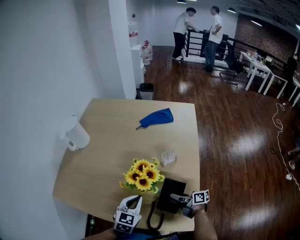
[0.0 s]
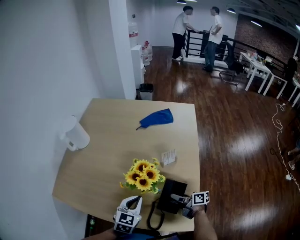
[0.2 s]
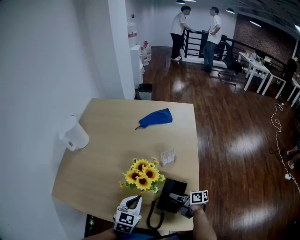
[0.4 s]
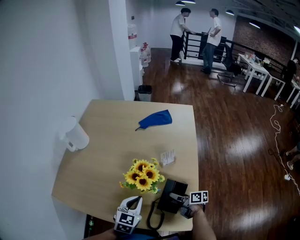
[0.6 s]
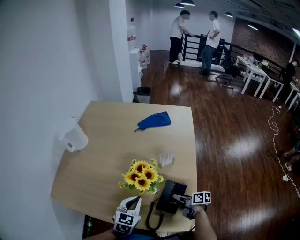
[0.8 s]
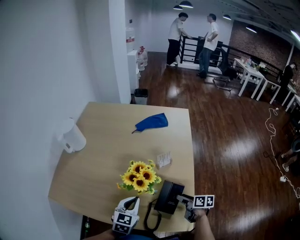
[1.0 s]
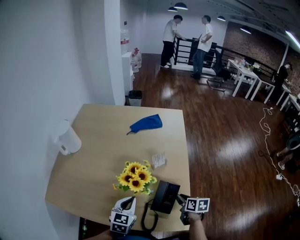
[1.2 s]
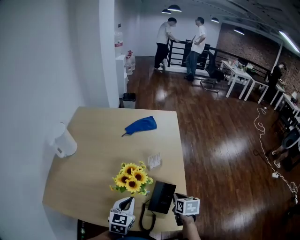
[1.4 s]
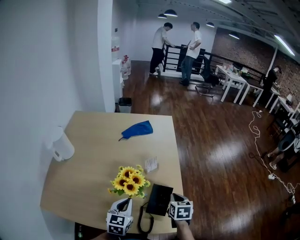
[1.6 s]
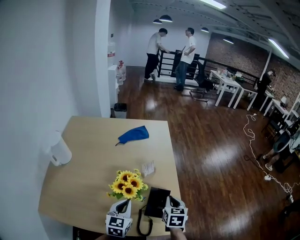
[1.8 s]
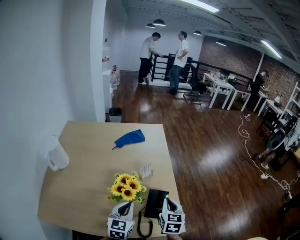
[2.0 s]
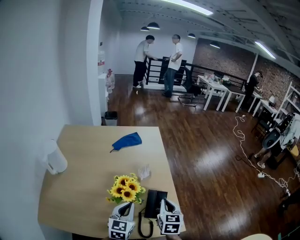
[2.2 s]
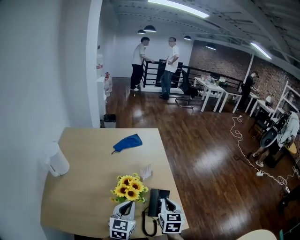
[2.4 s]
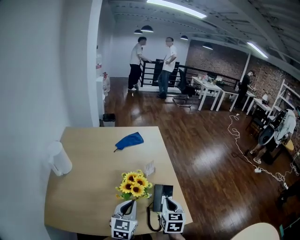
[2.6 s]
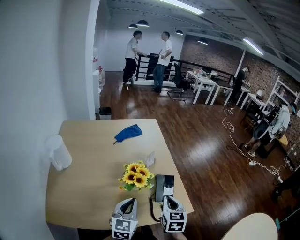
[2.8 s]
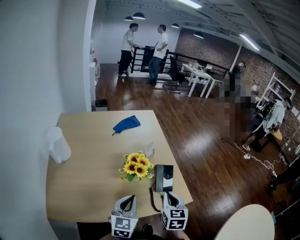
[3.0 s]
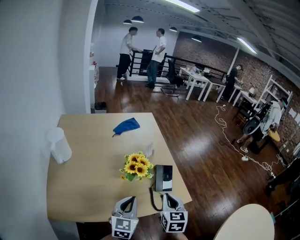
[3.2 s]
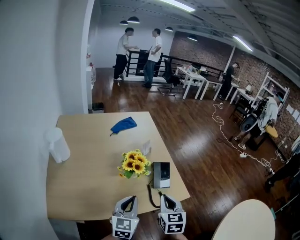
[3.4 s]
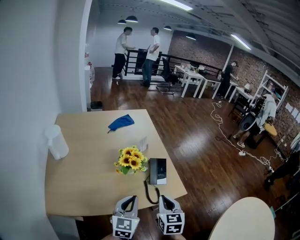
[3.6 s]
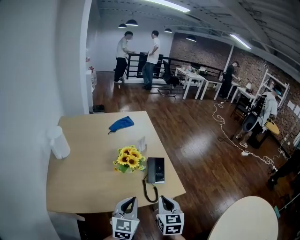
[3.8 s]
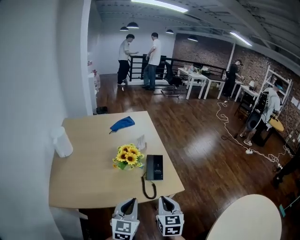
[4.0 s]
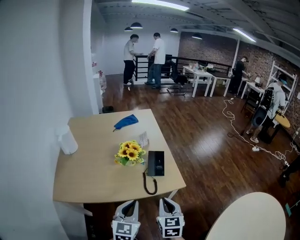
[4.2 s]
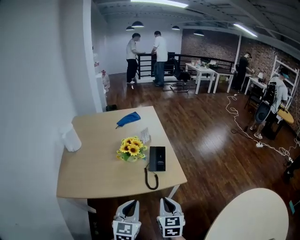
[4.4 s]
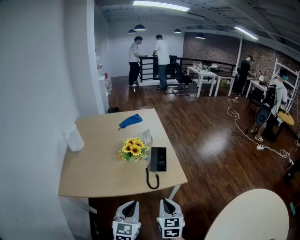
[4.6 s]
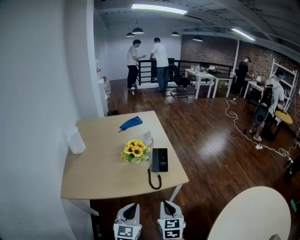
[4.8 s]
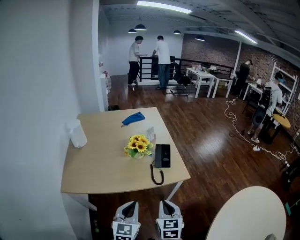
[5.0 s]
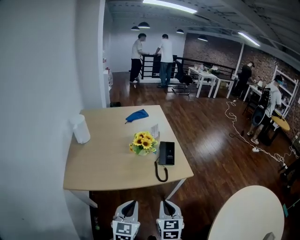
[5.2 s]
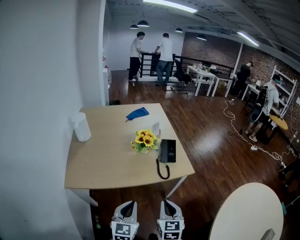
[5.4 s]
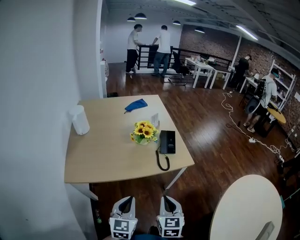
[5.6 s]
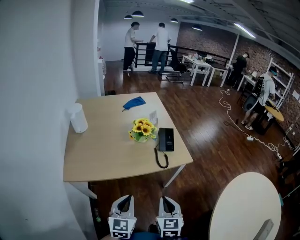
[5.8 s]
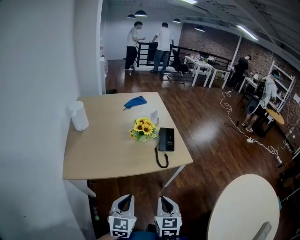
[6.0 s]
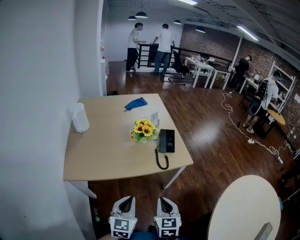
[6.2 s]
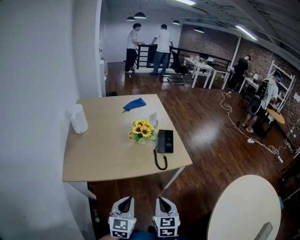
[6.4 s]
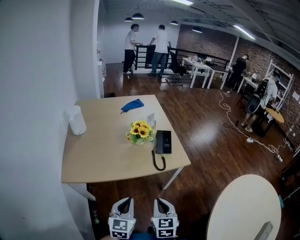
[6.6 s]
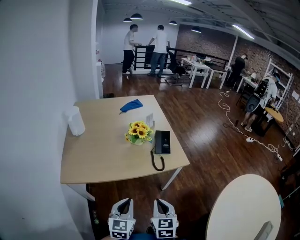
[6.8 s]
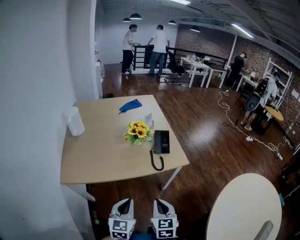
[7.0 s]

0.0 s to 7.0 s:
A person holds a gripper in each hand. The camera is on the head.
0.0 to 1.4 s: The right gripper shifts some 10 cm upward and to the right, points its fingers approximately 40 degrees further downward, and closes its fingers.
1.4 to 2.8 s: The right gripper moves upward, backward and to the left, some 20 cm, and changes its angle by approximately 30 degrees, while the left gripper shifts about 10 cm upward and backward.
2.8 to 4.2 s: The right gripper travels backward by some 20 cm. The left gripper moves backward and to the right, about 20 cm.
4.2 to 5.6 s: Both grippers move backward and to the left, approximately 15 cm.
5.6 to 7.0 s: The grippers move only a little.

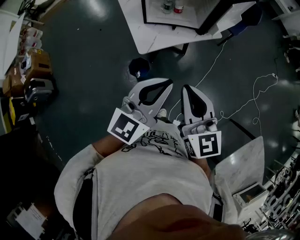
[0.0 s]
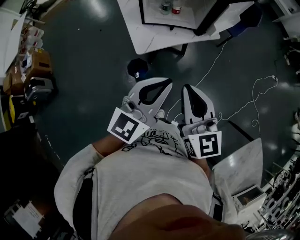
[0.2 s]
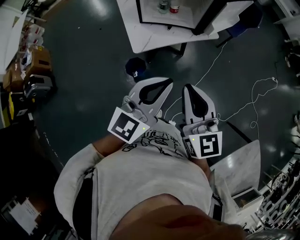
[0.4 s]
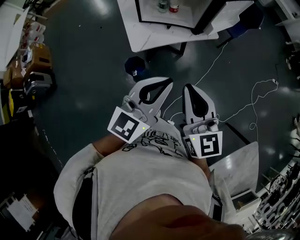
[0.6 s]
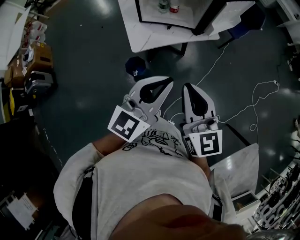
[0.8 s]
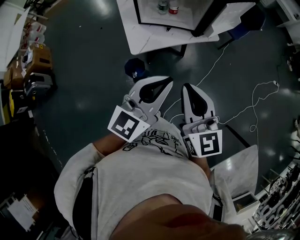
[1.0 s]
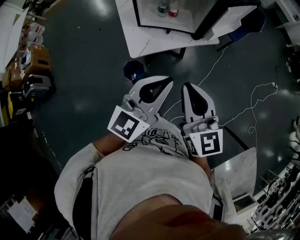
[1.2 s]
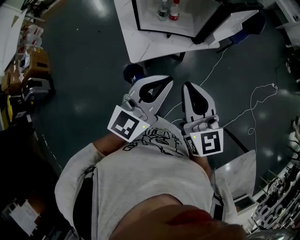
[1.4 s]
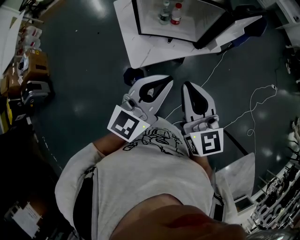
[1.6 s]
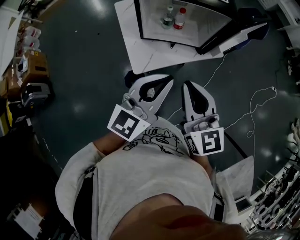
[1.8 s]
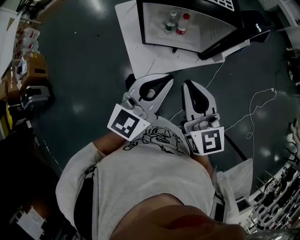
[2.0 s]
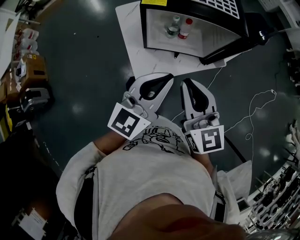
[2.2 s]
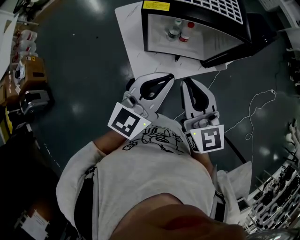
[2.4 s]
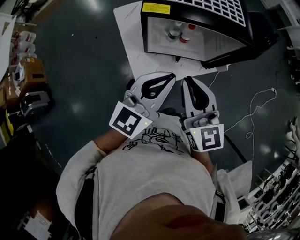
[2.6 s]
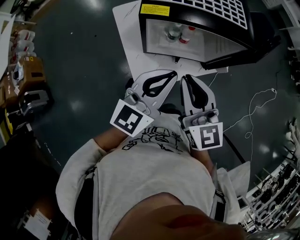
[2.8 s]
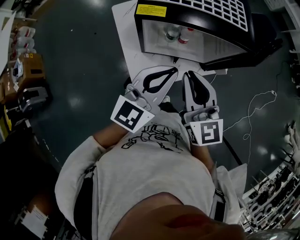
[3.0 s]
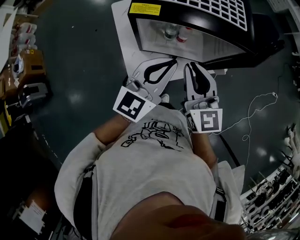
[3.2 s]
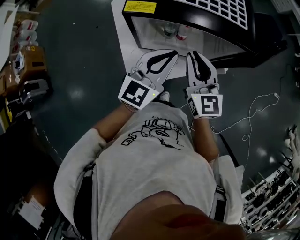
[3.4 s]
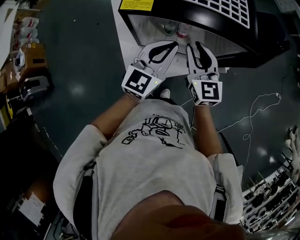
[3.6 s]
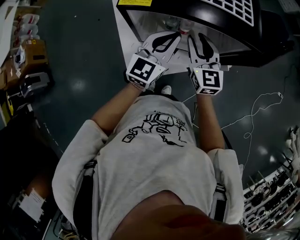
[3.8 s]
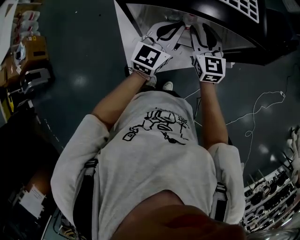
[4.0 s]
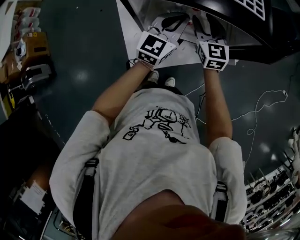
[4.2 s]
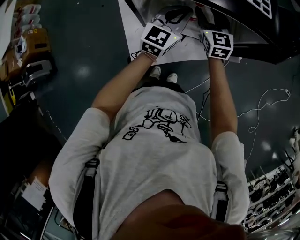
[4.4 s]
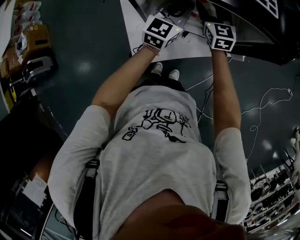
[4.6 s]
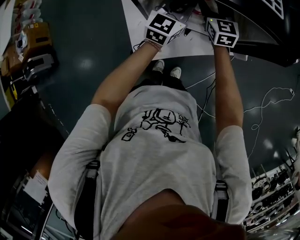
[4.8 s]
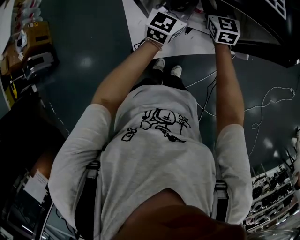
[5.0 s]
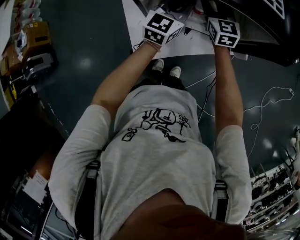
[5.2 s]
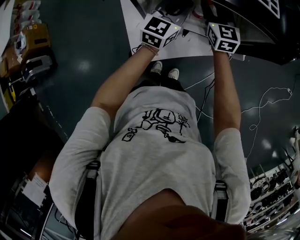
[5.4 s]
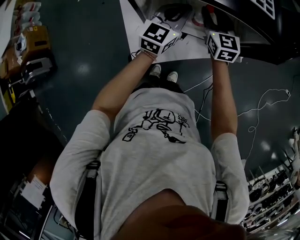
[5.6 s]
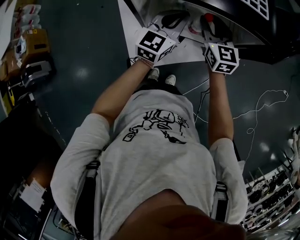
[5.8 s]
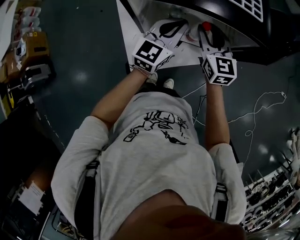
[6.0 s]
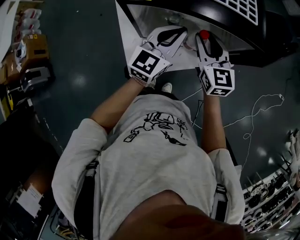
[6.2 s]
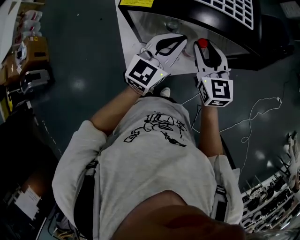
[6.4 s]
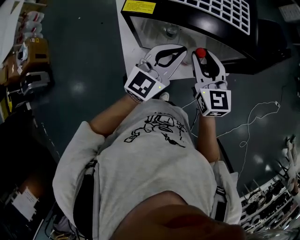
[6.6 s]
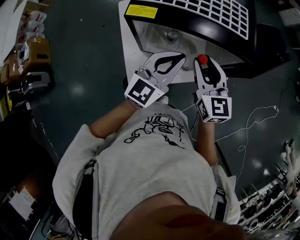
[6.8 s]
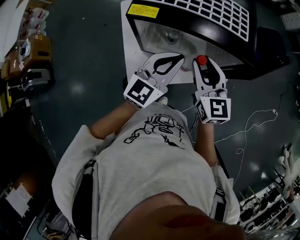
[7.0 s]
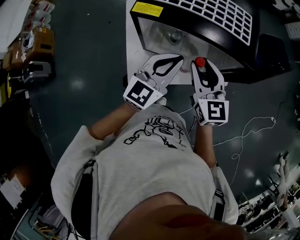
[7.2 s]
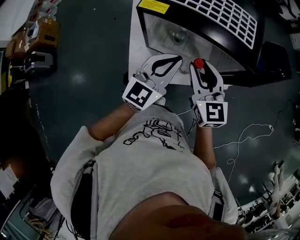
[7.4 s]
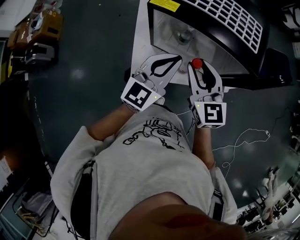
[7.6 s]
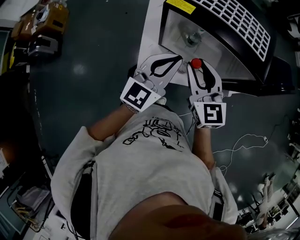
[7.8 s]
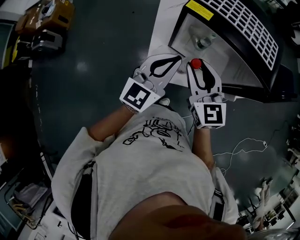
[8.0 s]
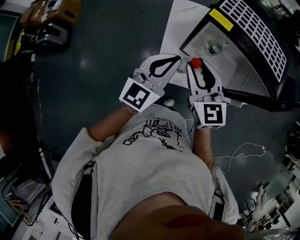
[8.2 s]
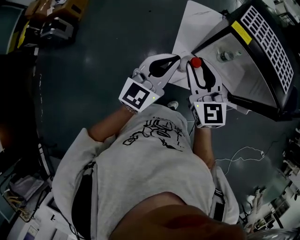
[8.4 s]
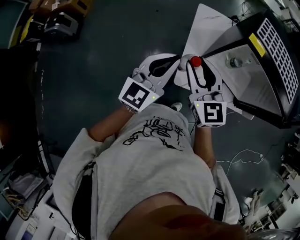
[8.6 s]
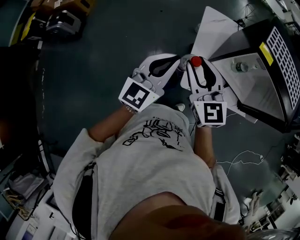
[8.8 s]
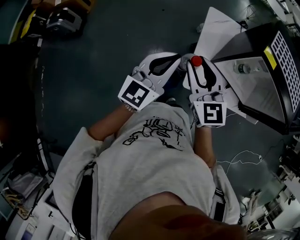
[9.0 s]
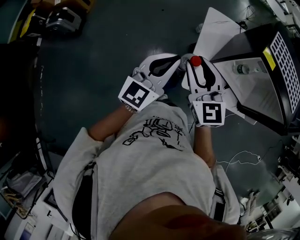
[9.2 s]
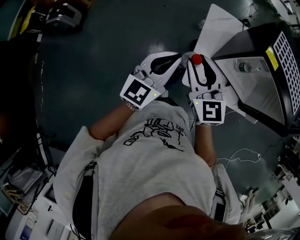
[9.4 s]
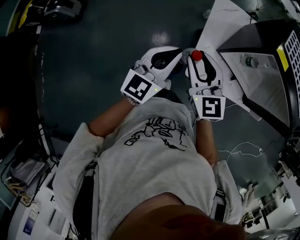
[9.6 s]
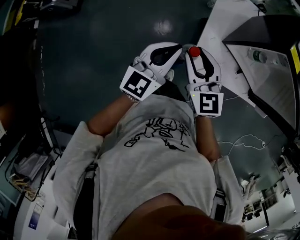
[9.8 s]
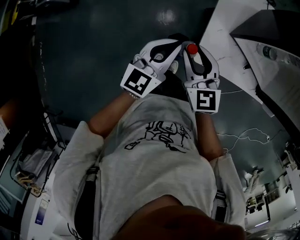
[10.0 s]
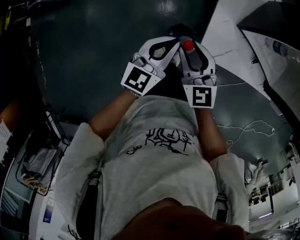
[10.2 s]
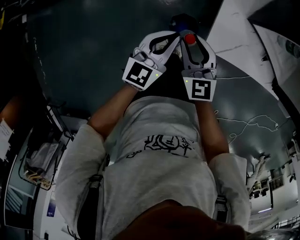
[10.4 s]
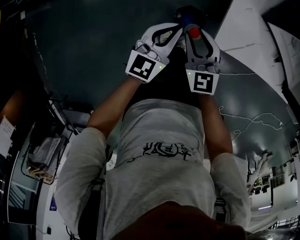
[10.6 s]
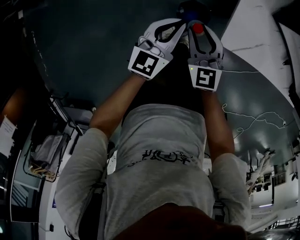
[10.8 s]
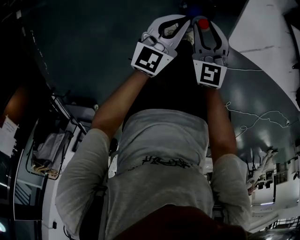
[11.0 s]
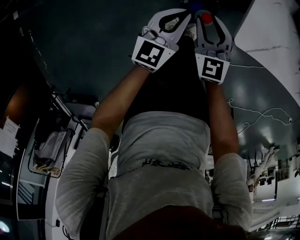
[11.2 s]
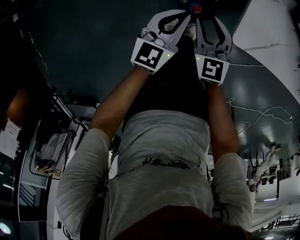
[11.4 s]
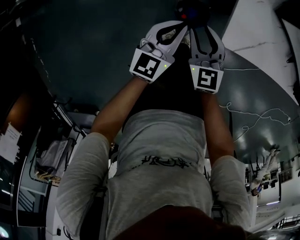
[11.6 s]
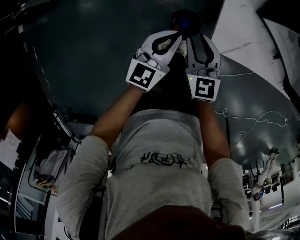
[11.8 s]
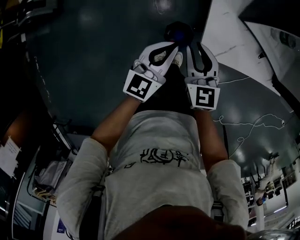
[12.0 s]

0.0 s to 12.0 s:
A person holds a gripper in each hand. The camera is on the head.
0.0 to 1.6 s: Both grippers travel together forward, roughly 15 cm.
1.6 to 3.0 s: The two grippers go roughly 20 cm forward.
3.0 to 4.4 s: The grippers both shift forward and downward by some 25 cm. The right gripper opens.
4.4 to 6.0 s: The right gripper heads backward and upward, covering roughly 10 cm. The left gripper ends up some 5 cm from where it was.
6.0 to 7.6 s: Both grippers move backward and upward, approximately 15 cm.
7.6 to 9.0 s: Both grippers move to the left, some 35 cm.
9.0 to 10.4 s: The two grippers go about 30 cm downward.
10.4 to 12.0 s: The right gripper reaches some 20 cm downward, then returns. Meanwhile the left gripper moves roughly 15 cm downward and comes back.

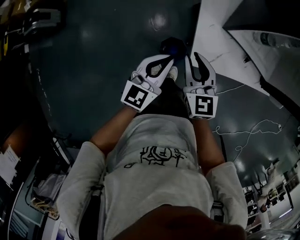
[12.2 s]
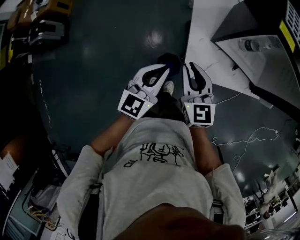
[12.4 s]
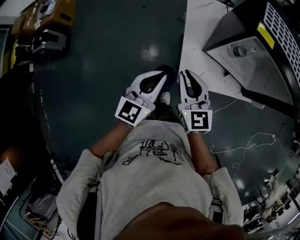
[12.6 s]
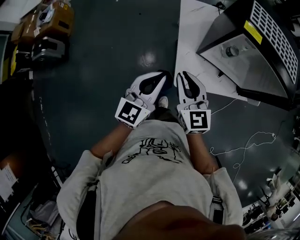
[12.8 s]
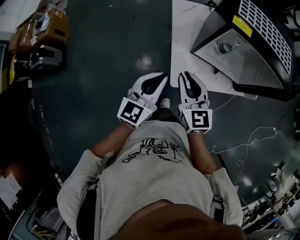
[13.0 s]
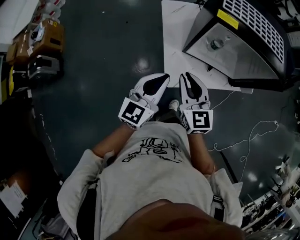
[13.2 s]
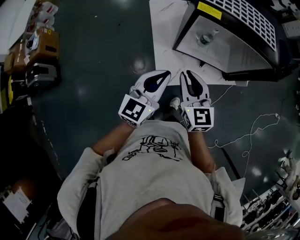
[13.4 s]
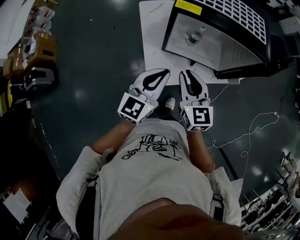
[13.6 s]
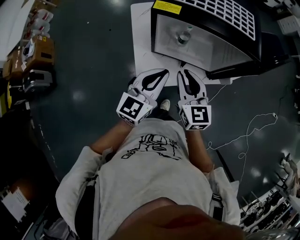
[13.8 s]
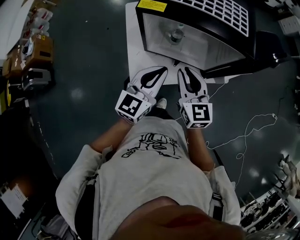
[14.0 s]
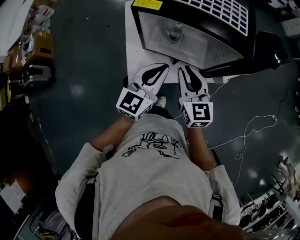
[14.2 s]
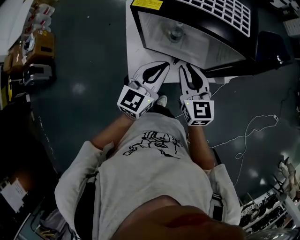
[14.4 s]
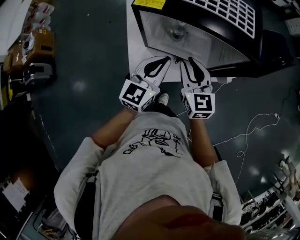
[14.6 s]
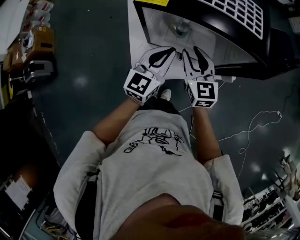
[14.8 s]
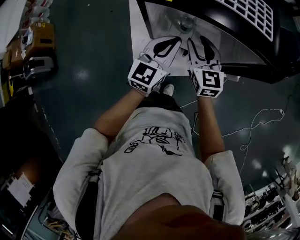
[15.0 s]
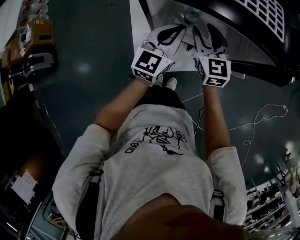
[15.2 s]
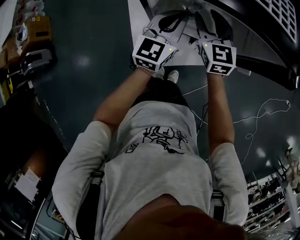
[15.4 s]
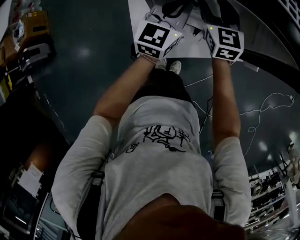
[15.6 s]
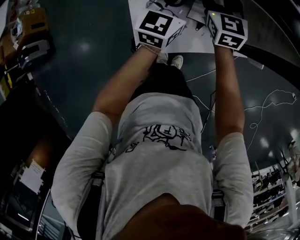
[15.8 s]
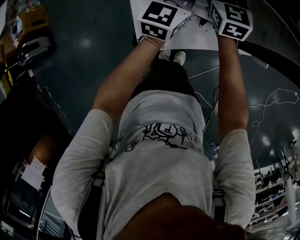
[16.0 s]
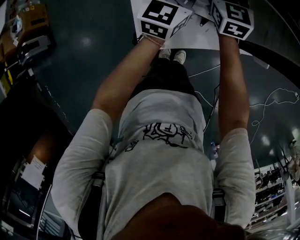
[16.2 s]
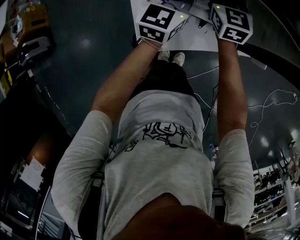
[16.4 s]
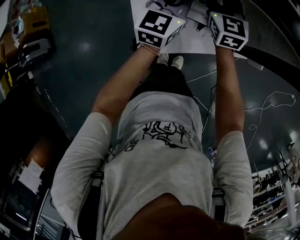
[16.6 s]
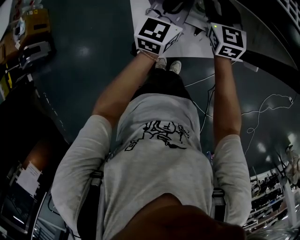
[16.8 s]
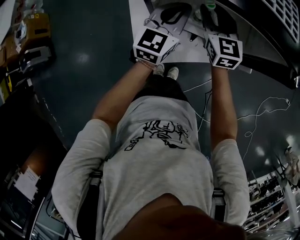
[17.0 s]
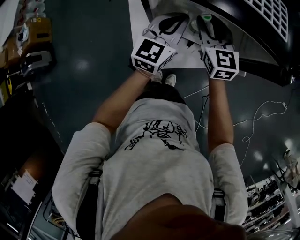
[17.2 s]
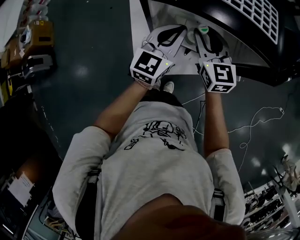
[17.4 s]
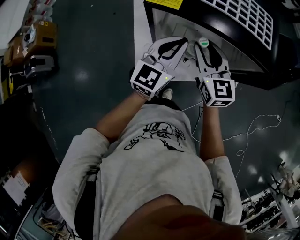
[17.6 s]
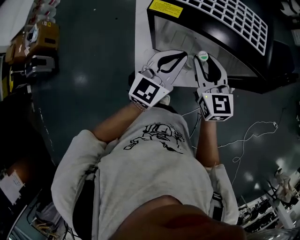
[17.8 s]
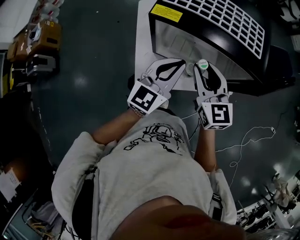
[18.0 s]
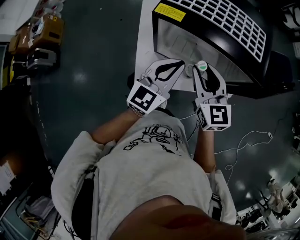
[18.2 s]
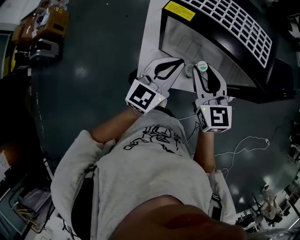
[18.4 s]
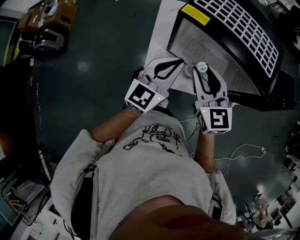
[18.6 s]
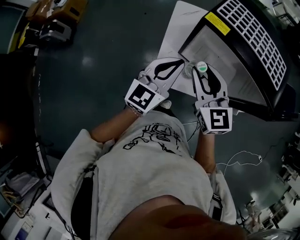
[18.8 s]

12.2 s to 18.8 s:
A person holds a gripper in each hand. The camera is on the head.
12.2 to 13.8 s: Both grippers travel together to the right and upward, approximately 30 cm.
13.8 to 15.4 s: The two grippers go about 20 cm forward and downward. The right gripper opens.
15.4 to 17.2 s: The right gripper reaches about 5 cm forward, then returns.
17.2 to 18.8 s: The right gripper moves backward, upward and to the left, roughly 20 cm, and changes its angle by approximately 20 degrees. The left gripper heads backward, to the left and upward, covering roughly 20 cm.
